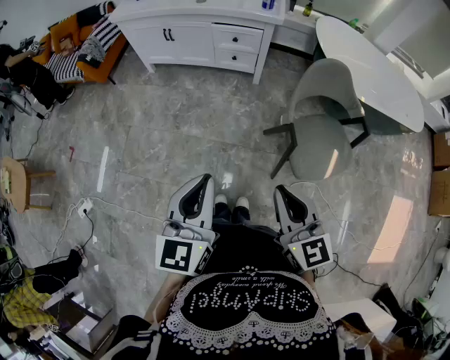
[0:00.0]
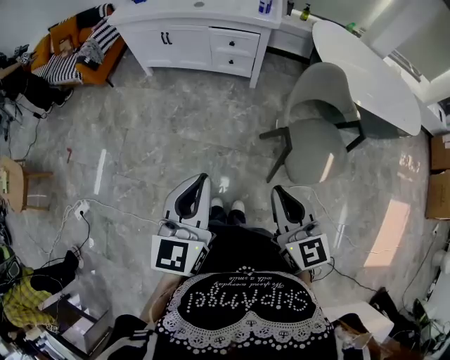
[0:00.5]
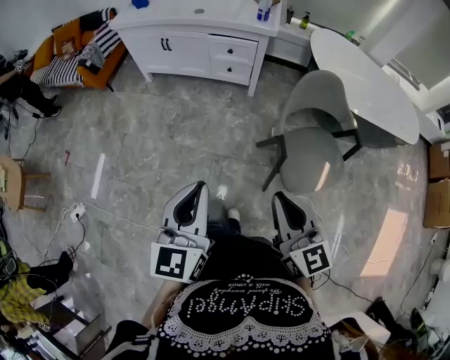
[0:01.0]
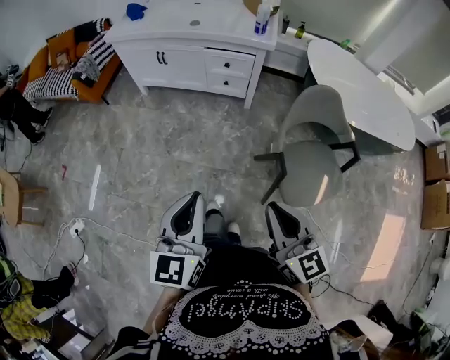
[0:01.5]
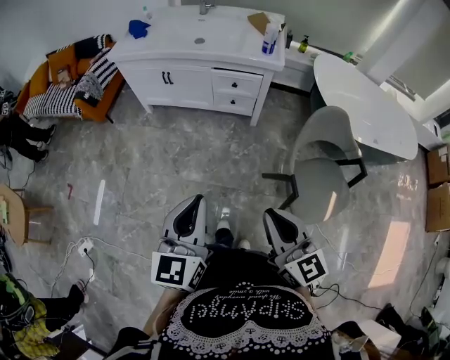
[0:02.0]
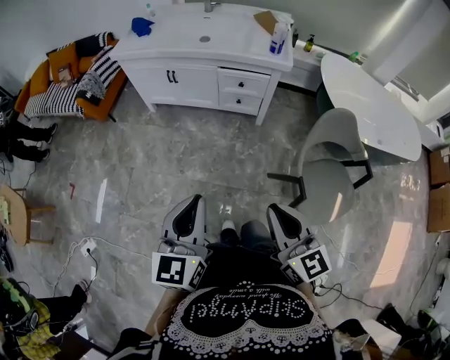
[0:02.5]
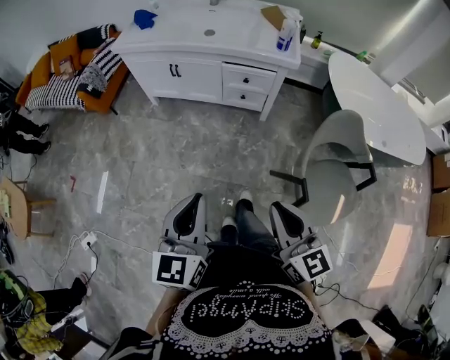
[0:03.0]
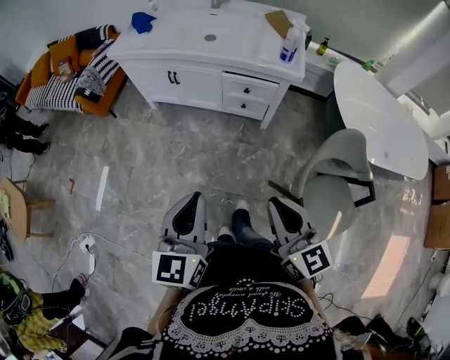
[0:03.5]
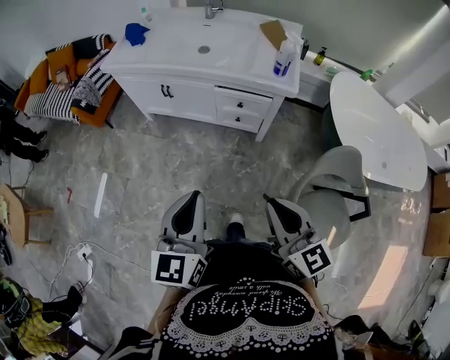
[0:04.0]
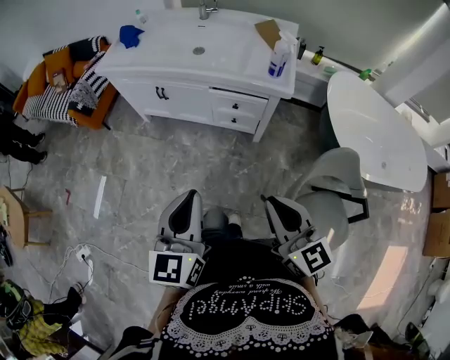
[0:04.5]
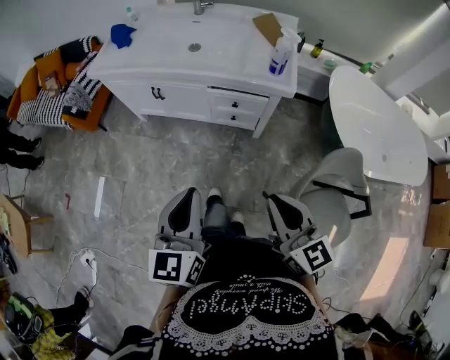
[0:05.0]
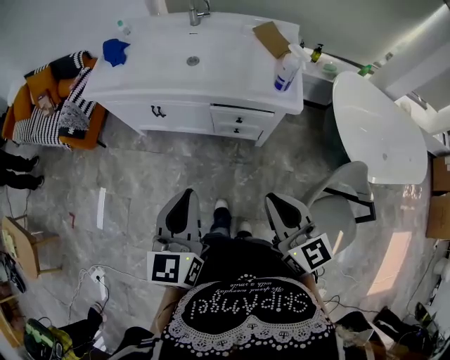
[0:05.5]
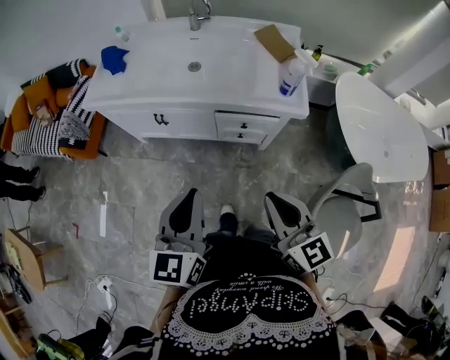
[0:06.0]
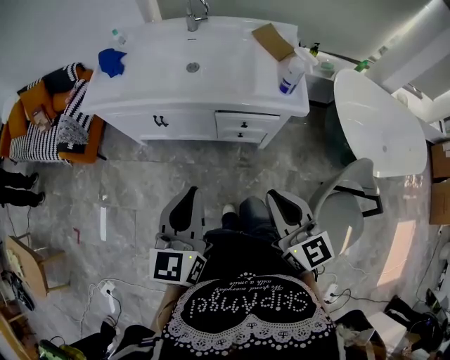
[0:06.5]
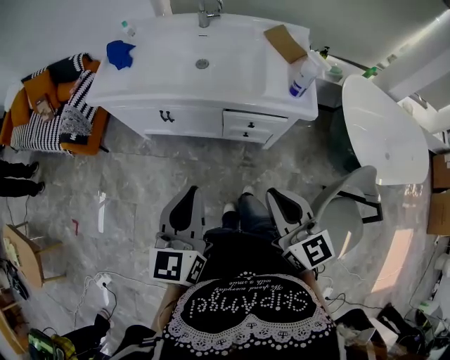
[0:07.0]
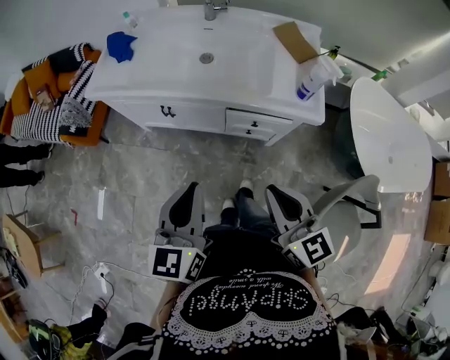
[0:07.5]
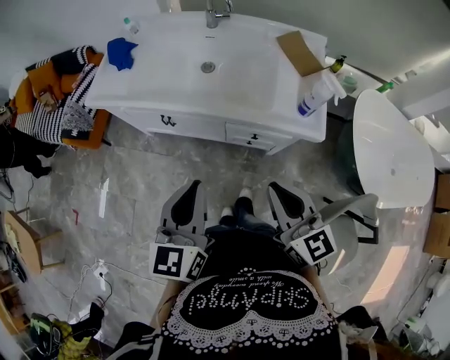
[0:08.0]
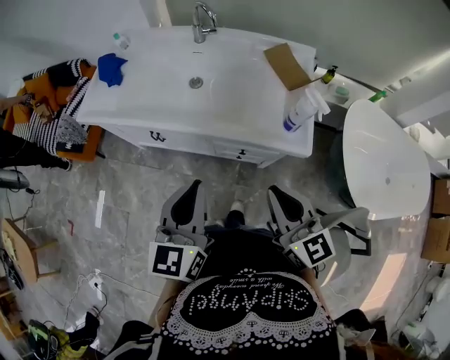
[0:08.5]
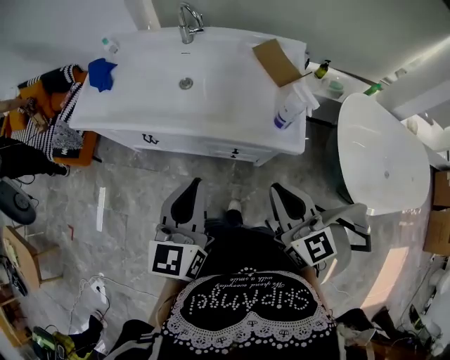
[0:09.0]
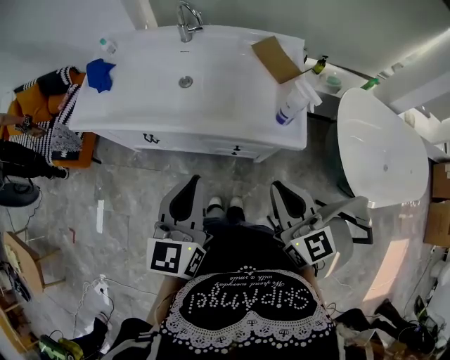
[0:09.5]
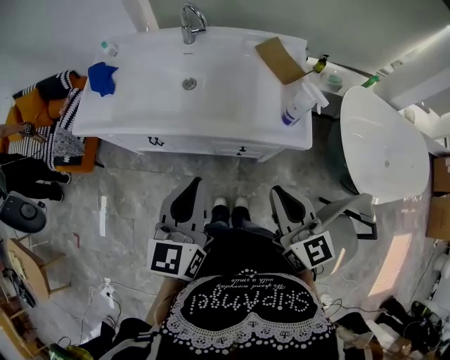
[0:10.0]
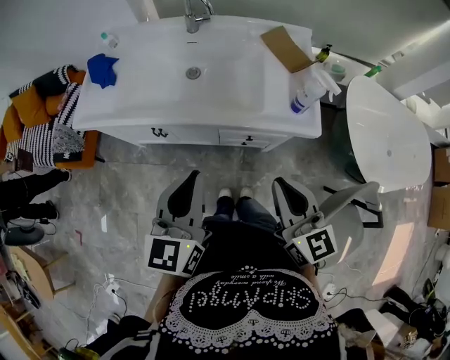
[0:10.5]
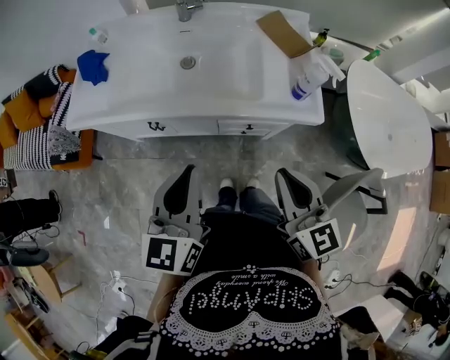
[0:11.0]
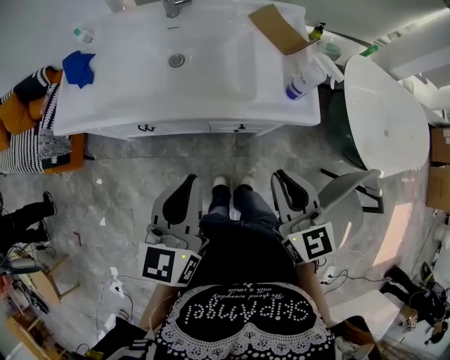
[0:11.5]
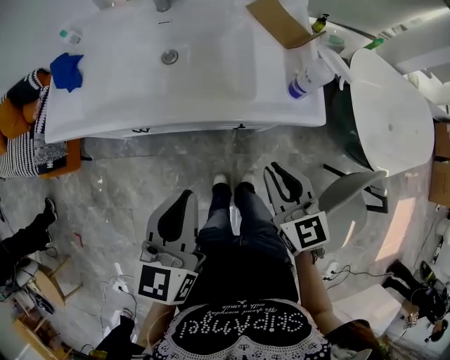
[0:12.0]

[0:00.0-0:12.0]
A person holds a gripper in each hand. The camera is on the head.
0:00.0 to 0:02.0: Both grippers travel together forward, roughly 10 cm.
0:02.0 to 0:04.0: The grippers both shift forward by some 20 cm.
0:04.0 to 0:06.0: The grippers both shift forward by approximately 20 cm.
0:06.0 to 0:08.0: The grippers both shift forward by some 10 cm.
0:08.0 to 0:10.0: The left gripper goes roughly 5 cm forward.
0:10.0 to 0:12.0: The left gripper heads downward, covering approximately 5 cm. The right gripper moves downward, roughly 10 cm.

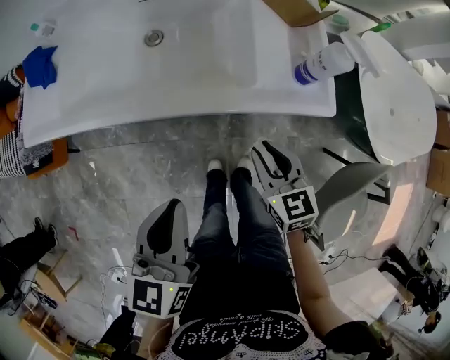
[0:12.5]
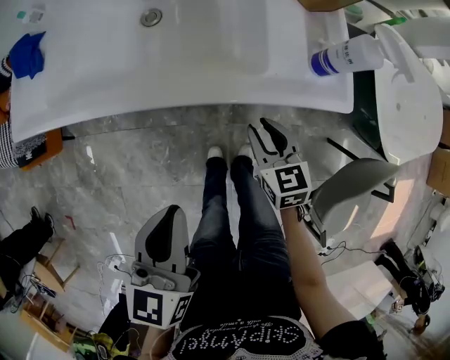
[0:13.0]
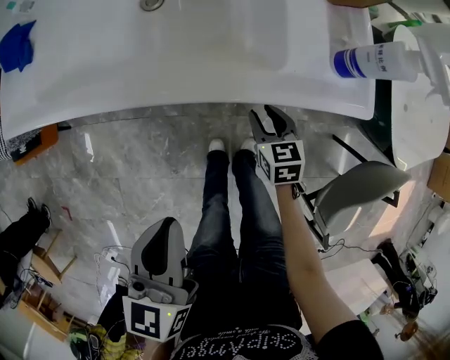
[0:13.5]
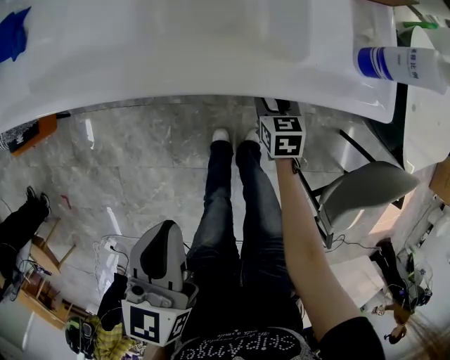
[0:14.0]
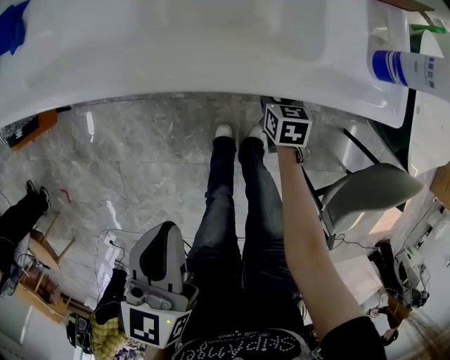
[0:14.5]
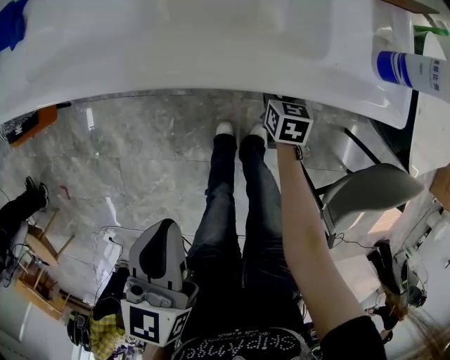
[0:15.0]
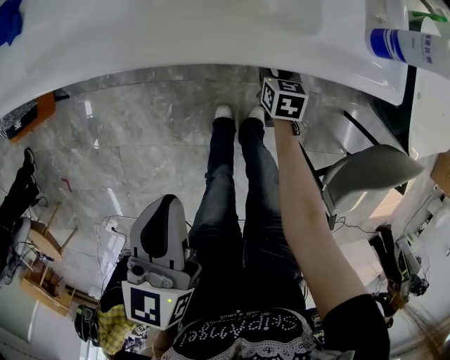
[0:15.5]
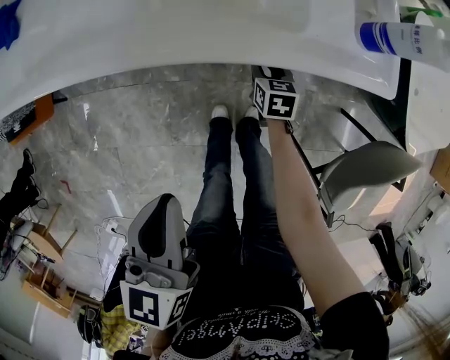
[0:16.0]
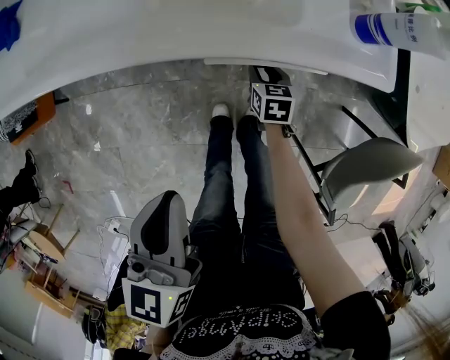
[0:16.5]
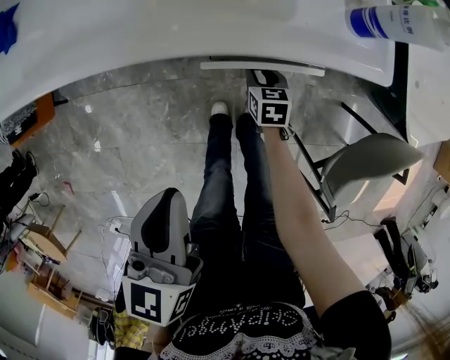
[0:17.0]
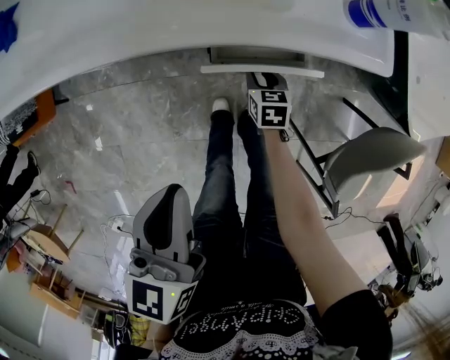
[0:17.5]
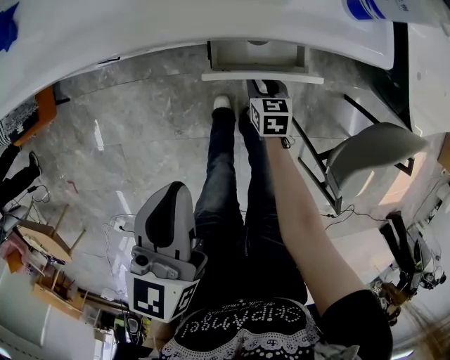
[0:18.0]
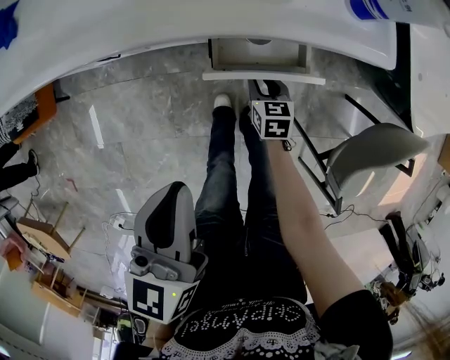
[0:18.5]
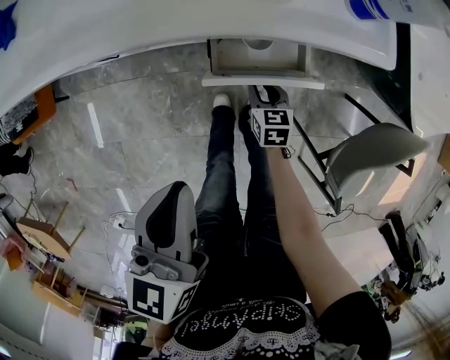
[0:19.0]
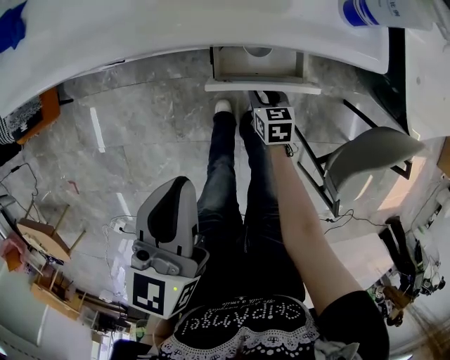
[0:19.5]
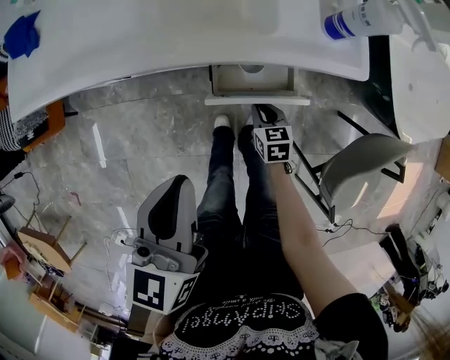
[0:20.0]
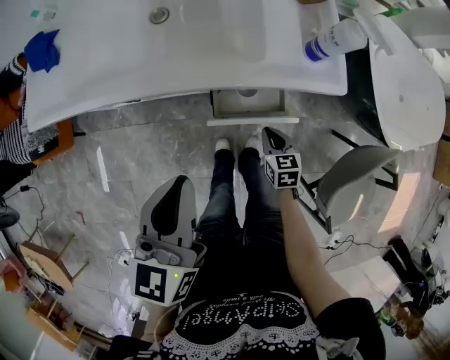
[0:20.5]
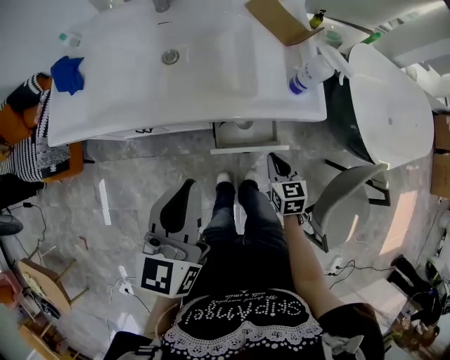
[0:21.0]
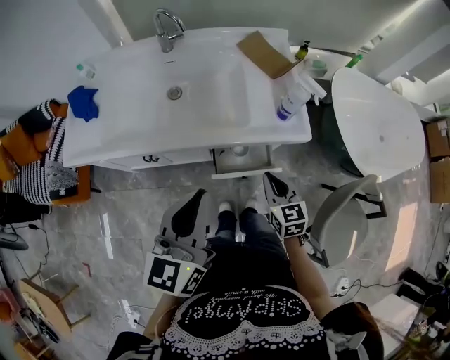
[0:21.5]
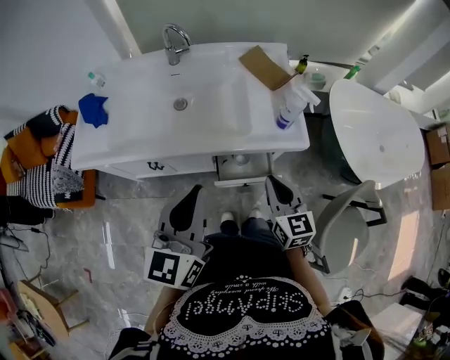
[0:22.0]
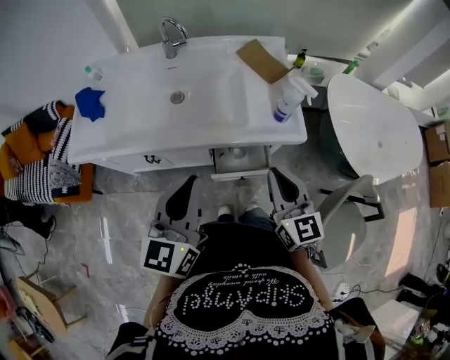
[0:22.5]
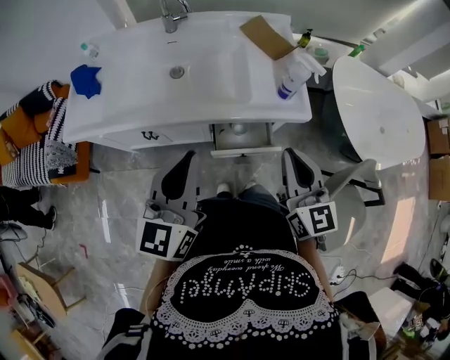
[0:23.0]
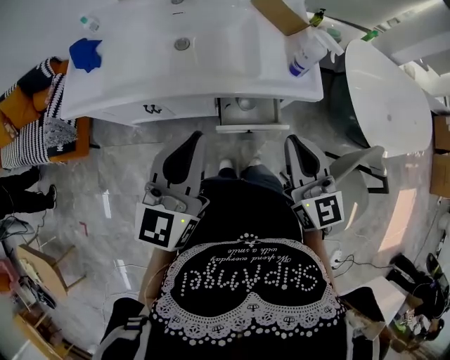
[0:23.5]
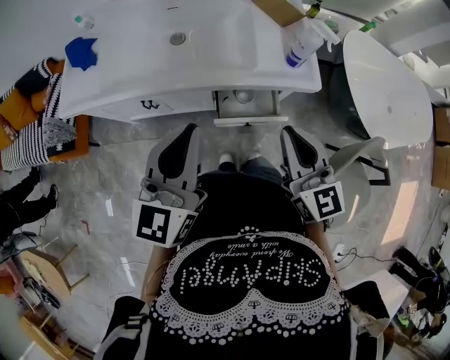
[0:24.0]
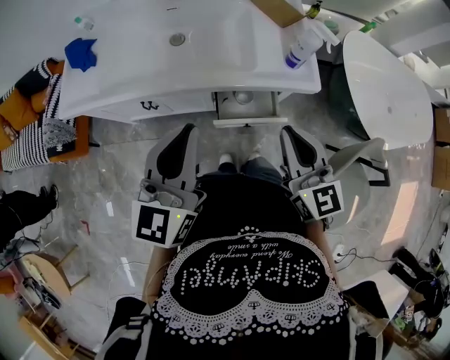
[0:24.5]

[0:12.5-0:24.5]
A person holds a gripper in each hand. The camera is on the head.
0:12.5 to 0:14.5: The left gripper goes roughly 10 cm downward; the right gripper shifts some 25 cm downward, and swivels approximately 30 degrees.
0:14.5 to 0:16.5: The grippers make only small movements.
0:16.5 to 0:18.5: The right gripper travels backward by roughly 10 cm.
0:18.5 to 0:20.5: The two grippers go roughly 10 cm upward. The right gripper closes up.
0:20.5 to 0:22.5: The left gripper shifts roughly 10 cm upward, while the right gripper heads upward, covering about 35 cm, and tilts its fingers roughly 40 degrees upward.
0:22.5 to 0:24.5: There are only small adjustments of the grippers.

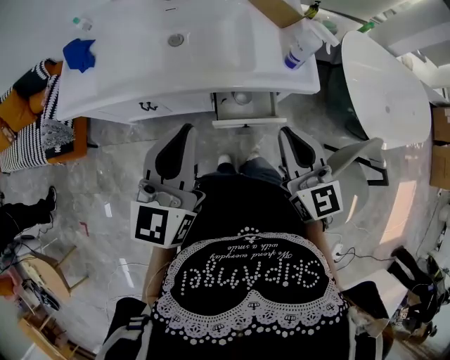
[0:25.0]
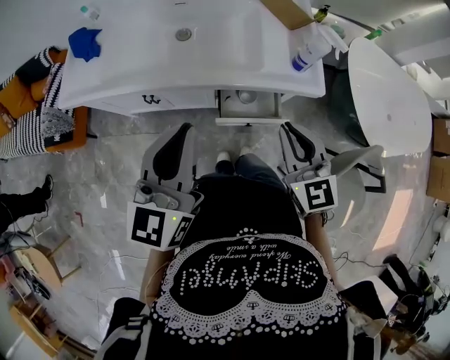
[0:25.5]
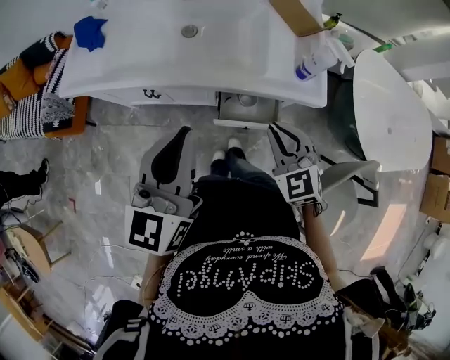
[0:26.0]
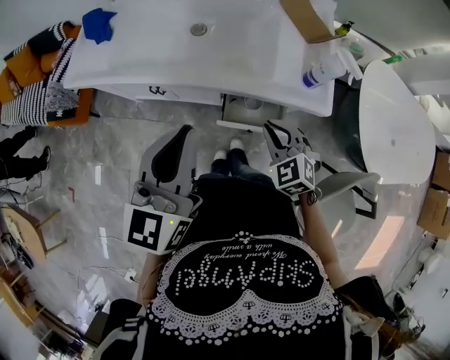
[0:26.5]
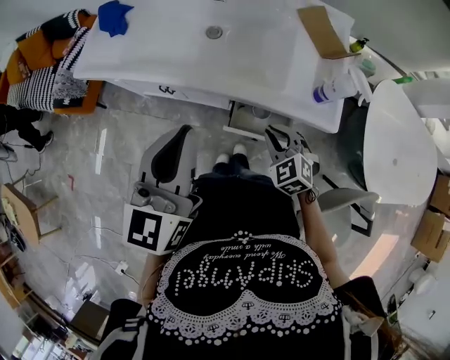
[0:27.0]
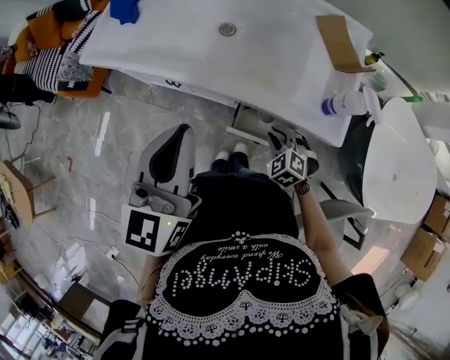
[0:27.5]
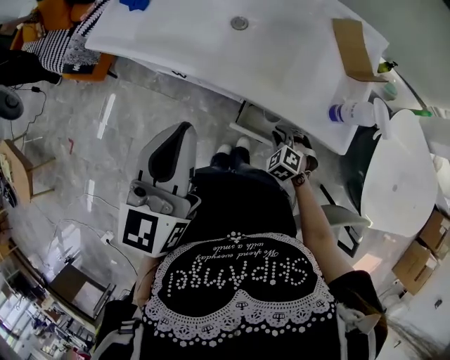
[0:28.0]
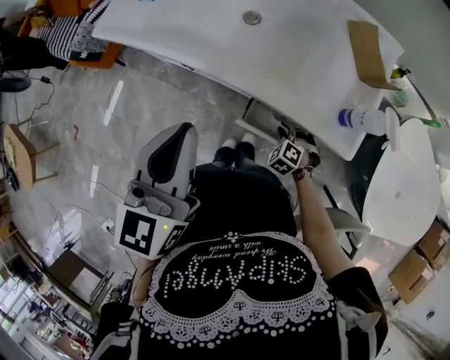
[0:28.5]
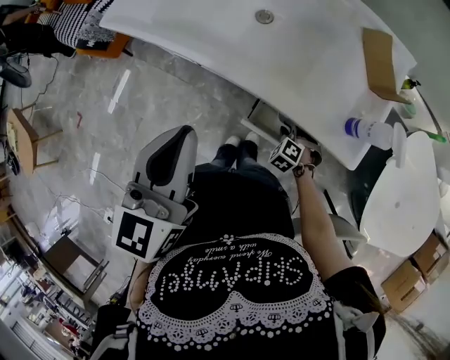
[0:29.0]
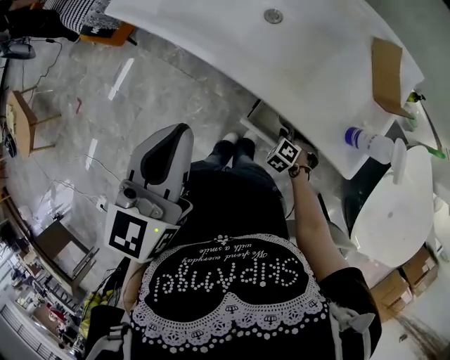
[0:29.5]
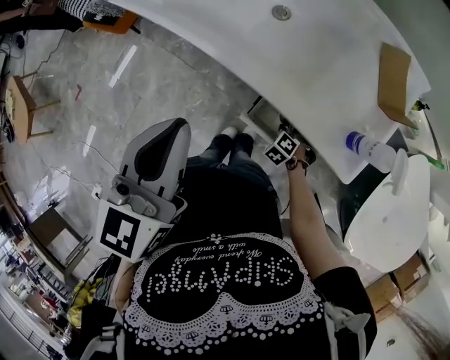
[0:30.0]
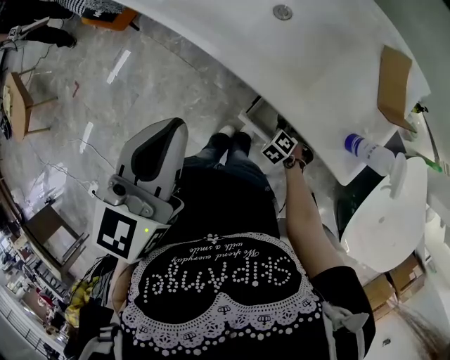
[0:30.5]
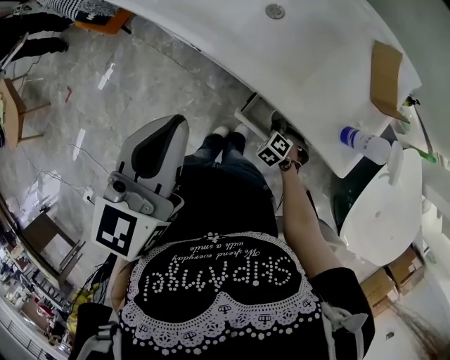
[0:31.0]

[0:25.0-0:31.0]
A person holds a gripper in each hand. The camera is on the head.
0:25.0 to 0:27.0: The right gripper heads downward and forward, covering roughly 20 cm, and angles its fingers downward, by approximately 40 degrees.
0:27.0 to 0:29.0: The right gripper goes approximately 20 cm downward, and turns by some 30 degrees.
0:29.0 to 0:31.0: The grippers make only small movements.
